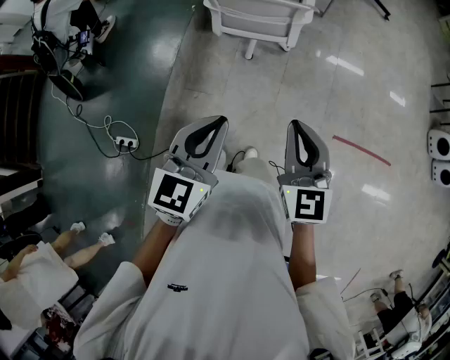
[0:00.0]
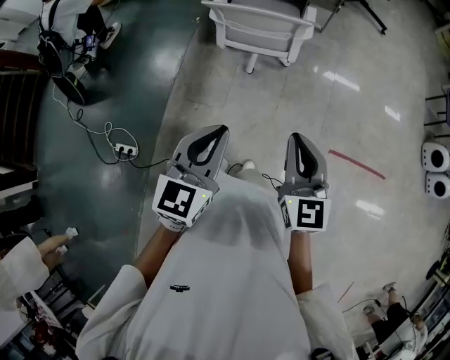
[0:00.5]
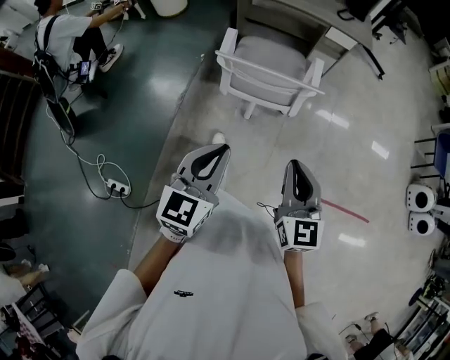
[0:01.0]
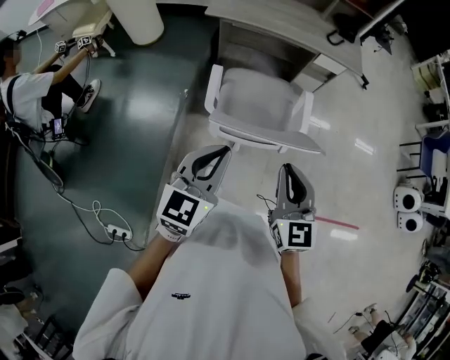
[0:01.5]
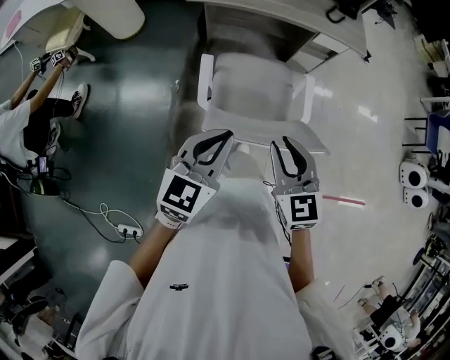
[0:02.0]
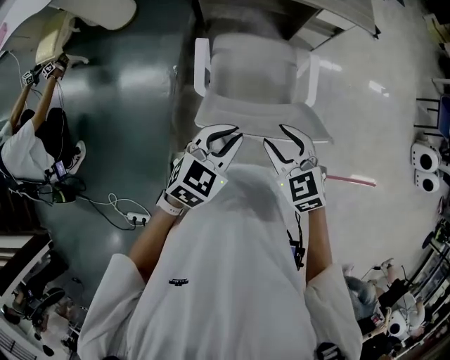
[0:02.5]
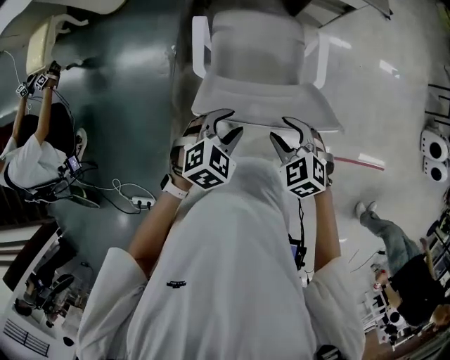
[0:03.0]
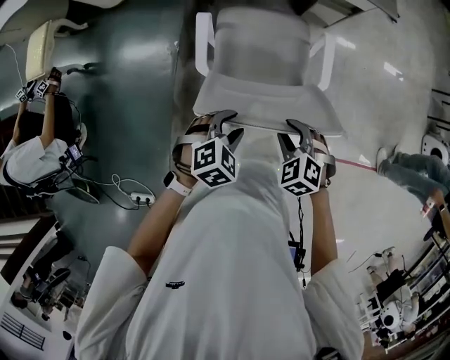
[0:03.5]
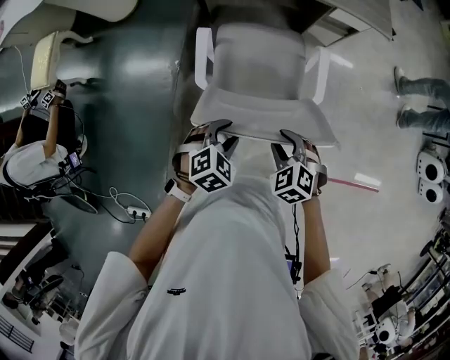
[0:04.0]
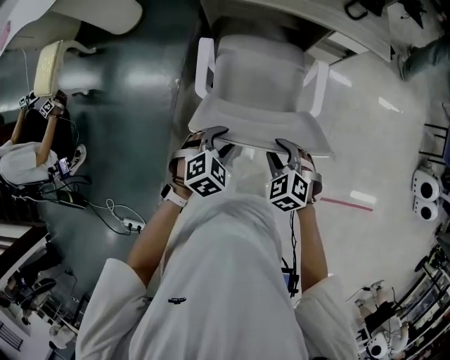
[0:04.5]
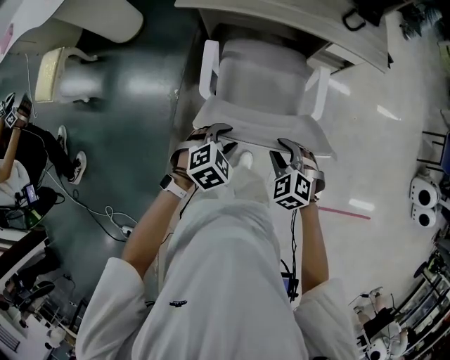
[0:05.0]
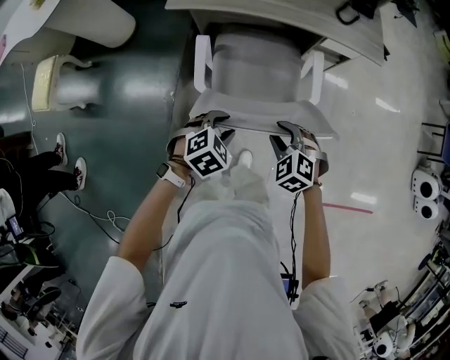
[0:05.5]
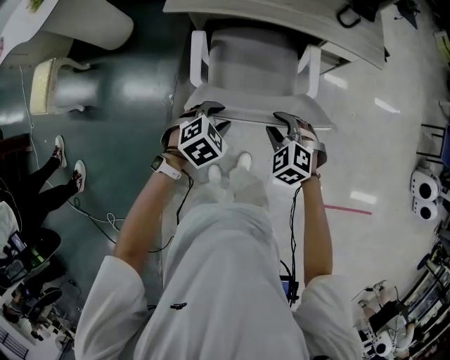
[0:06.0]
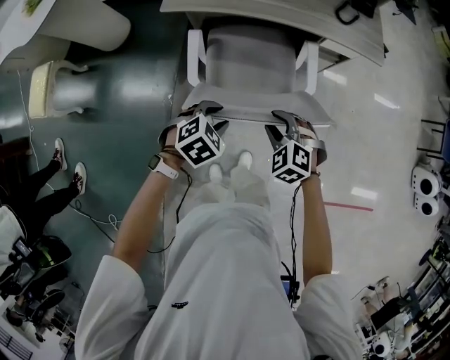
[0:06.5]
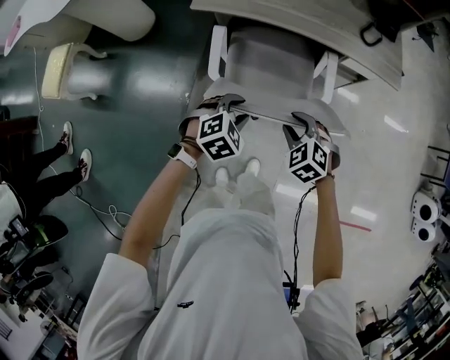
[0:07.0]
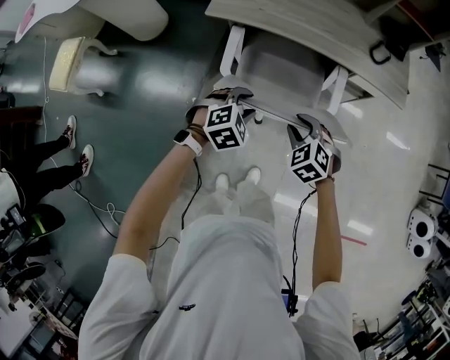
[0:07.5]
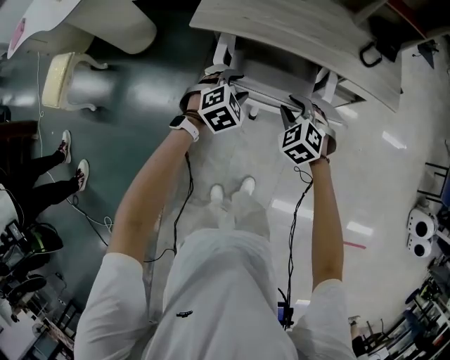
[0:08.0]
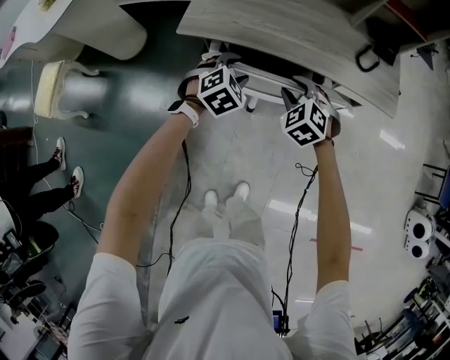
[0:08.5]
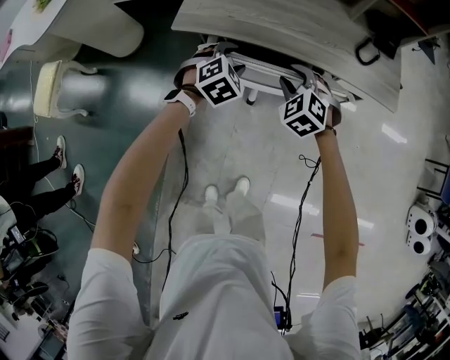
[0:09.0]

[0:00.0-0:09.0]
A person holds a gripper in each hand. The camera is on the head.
0:00.0 to 0:02.0: Both grippers are carried forward, approximately 50 cm.
0:02.0 to 0:04.5: The right gripper goes about 25 cm downward and forward, and tilts its fingers some 40 degrees downward, while the left gripper travels downward by approximately 20 cm, points its fingers approximately 40 degrees further downward, and opens its fingers.
0:04.5 to 0:07.0: The two grippers go approximately 15 cm forward.
0:07.0 to 0:09.0: Both grippers travel together forward, some 25 cm.

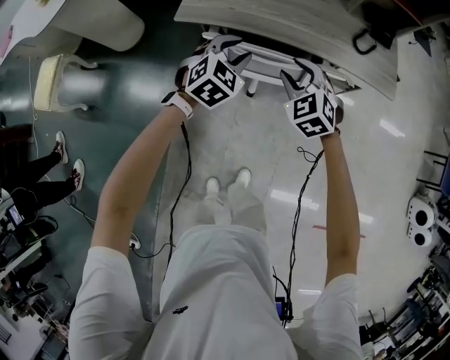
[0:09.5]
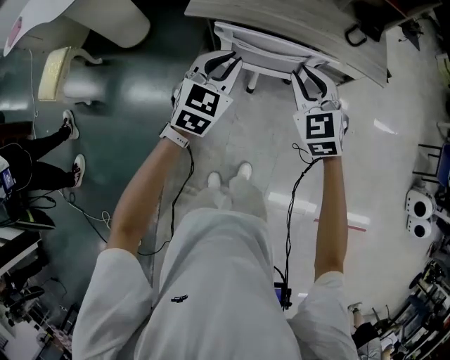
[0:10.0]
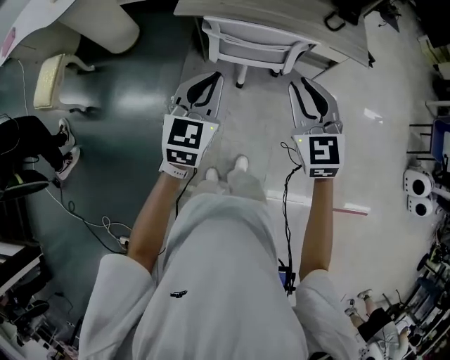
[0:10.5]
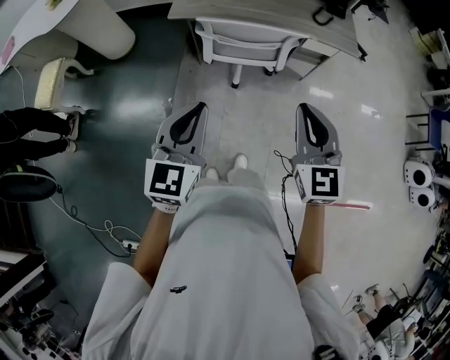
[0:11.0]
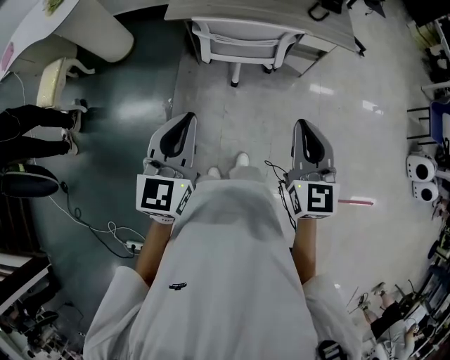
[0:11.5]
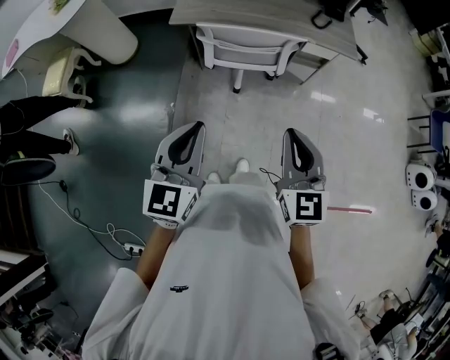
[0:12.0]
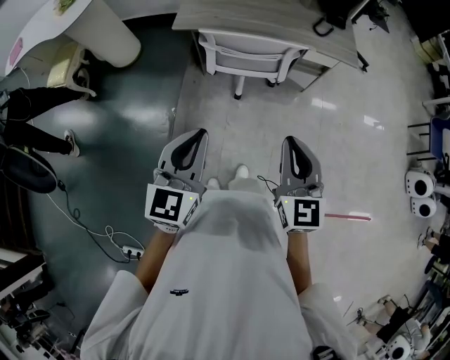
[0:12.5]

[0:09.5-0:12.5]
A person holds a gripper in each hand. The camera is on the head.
0:09.5 to 0:11.0: The two grippers go some 40 cm backward and upward. The right gripper turns by approximately 40 degrees, and closes its fingers, while the left gripper swivels roughly 40 degrees, and closes up.
0:11.0 to 0:12.5: The right gripper travels backward by some 5 cm.

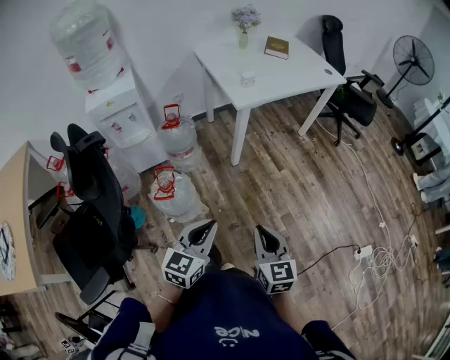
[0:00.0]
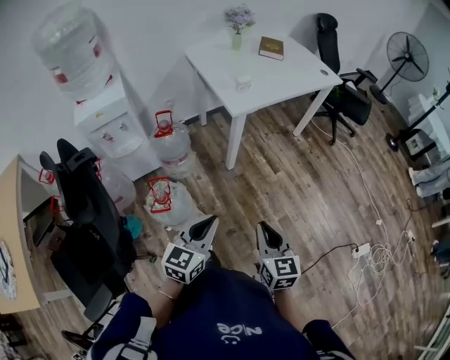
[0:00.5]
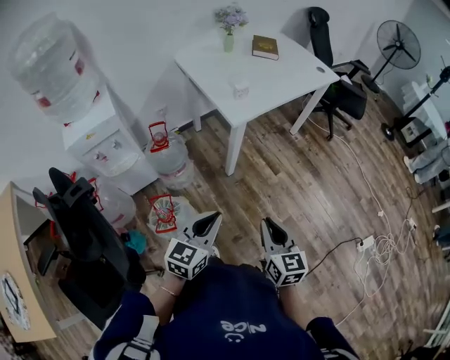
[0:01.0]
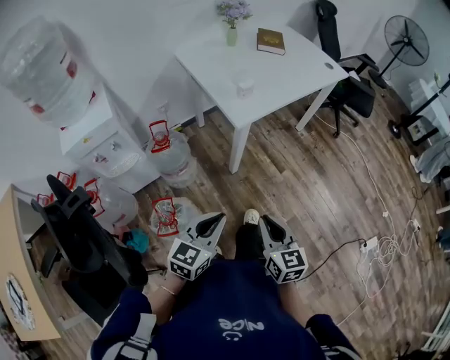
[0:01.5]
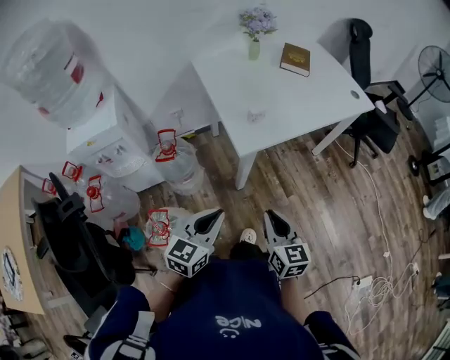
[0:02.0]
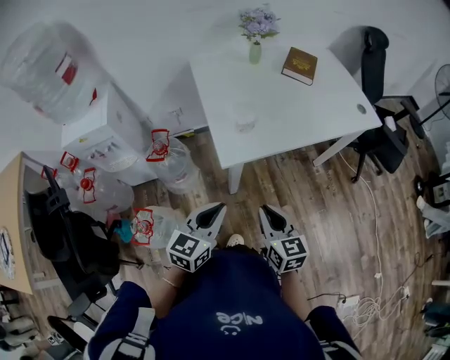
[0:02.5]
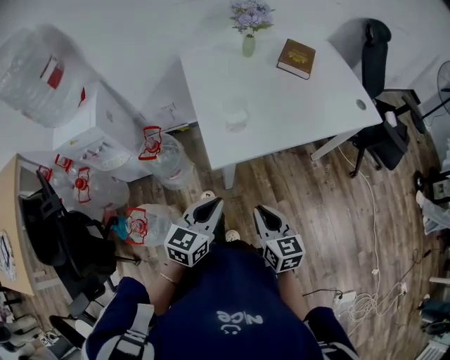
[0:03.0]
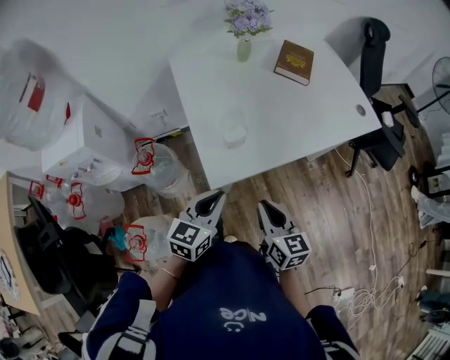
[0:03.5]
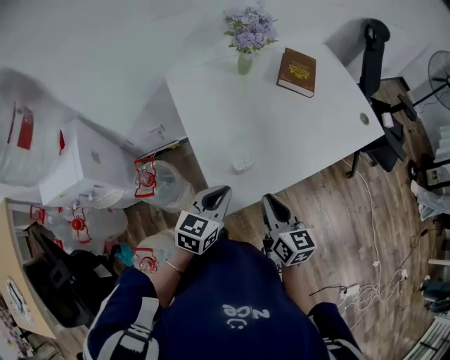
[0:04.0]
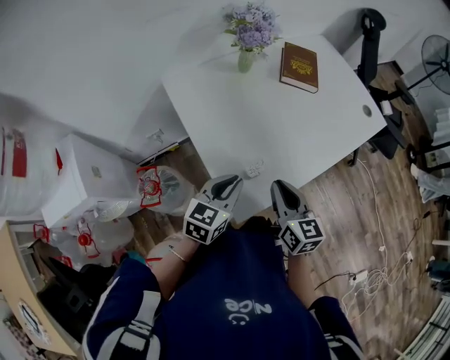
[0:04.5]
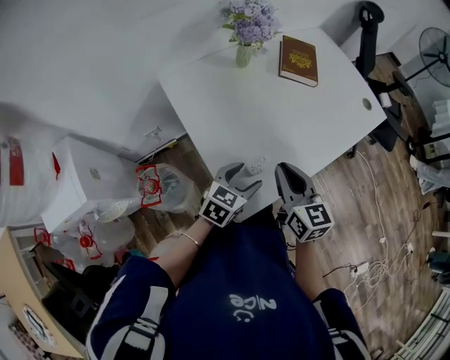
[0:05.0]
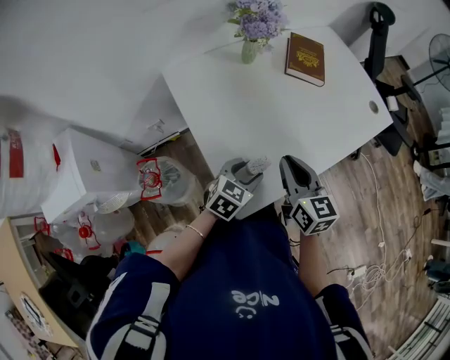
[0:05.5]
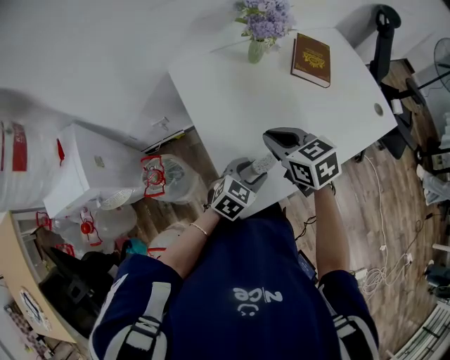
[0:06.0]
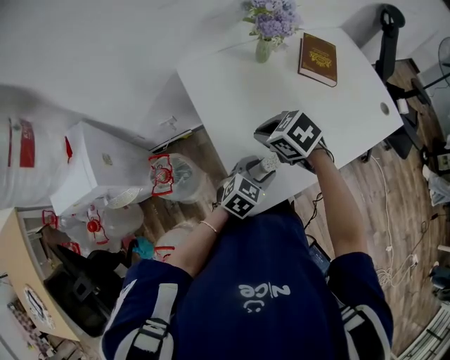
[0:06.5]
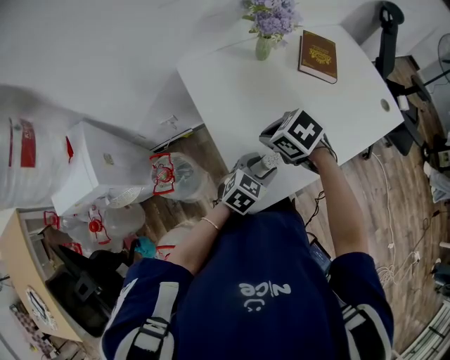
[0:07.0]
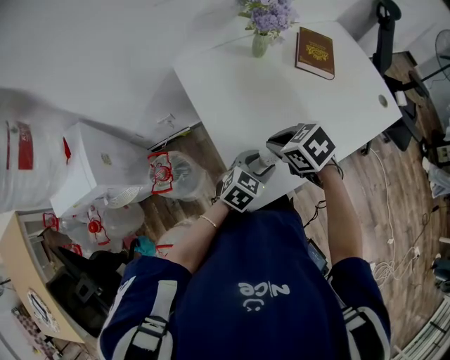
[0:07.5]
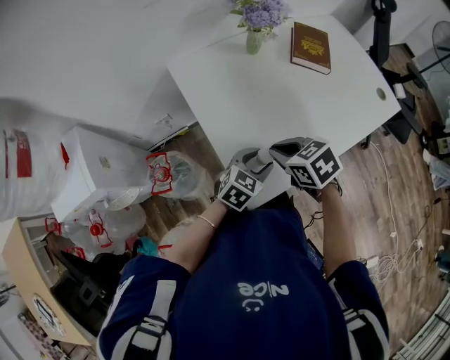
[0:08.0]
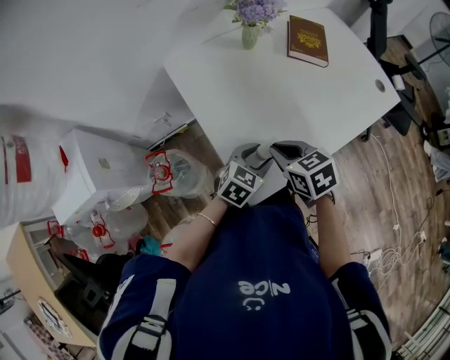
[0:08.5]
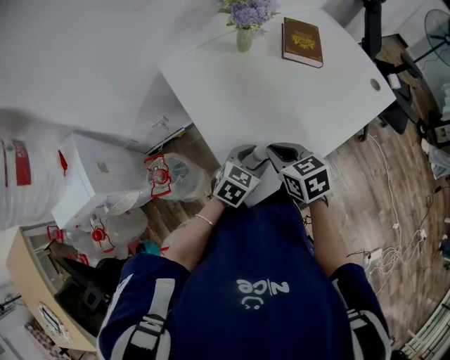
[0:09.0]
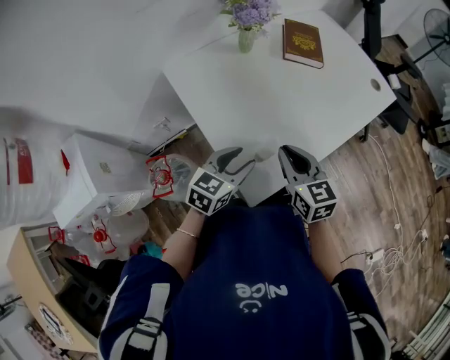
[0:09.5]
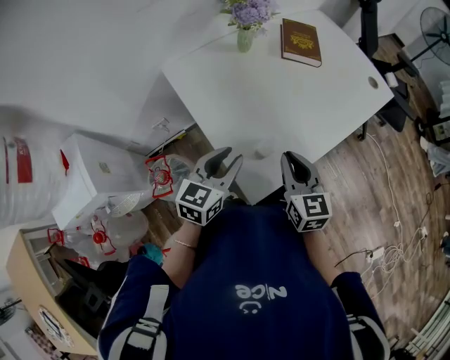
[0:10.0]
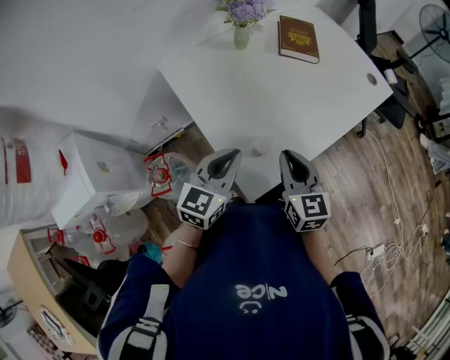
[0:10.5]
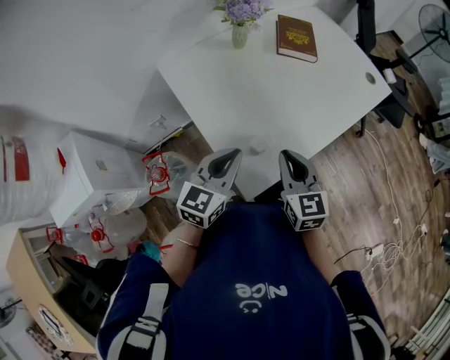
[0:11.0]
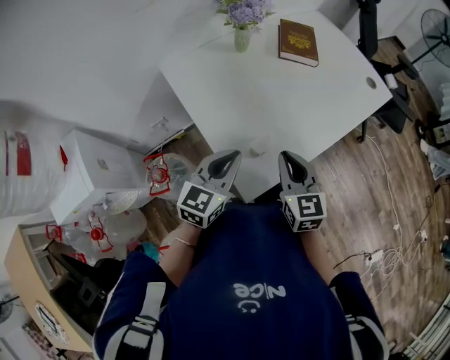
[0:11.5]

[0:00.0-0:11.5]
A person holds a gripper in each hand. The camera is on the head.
0:00.0 to 0:02.0: The grippers both shift forward by roughly 35 cm.
0:02.0 to 0:04.0: Both grippers travel together forward, approximately 35 cm.
0:04.0 to 0:06.0: The left gripper travels forward and downward by approximately 10 cm, swivels about 20 degrees, and opens its fingers, while the right gripper travels forward and to the left by roughly 20 cm, and turns by roughly 30 degrees.
0:06.0 to 0:07.5: The right gripper moves roughly 5 cm, and rotates approximately 20 degrees.
0:07.5 to 0:09.5: The right gripper goes approximately 5 cm to the right, and points its fingers about 30 degrees further upward; the left gripper moves to the left, about 5 cm.
0:09.5 to 0:11.5: The left gripper shifts some 5 cm upward, and closes its fingers.

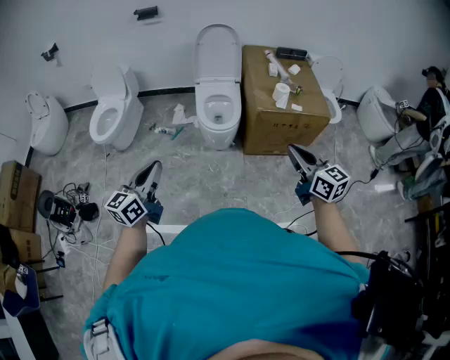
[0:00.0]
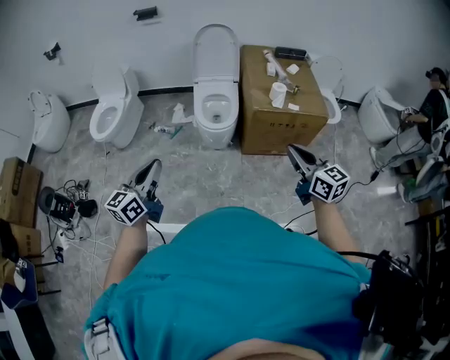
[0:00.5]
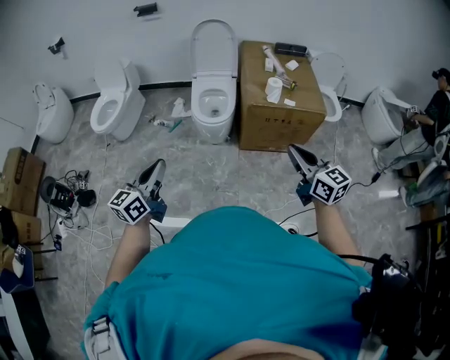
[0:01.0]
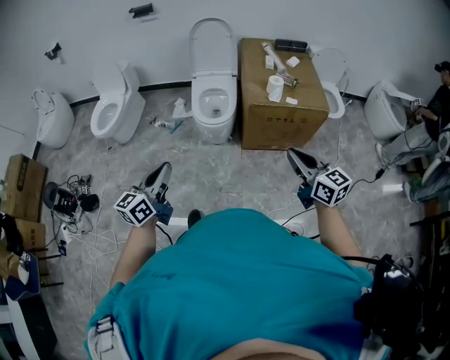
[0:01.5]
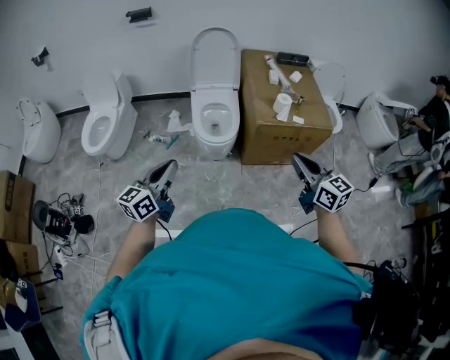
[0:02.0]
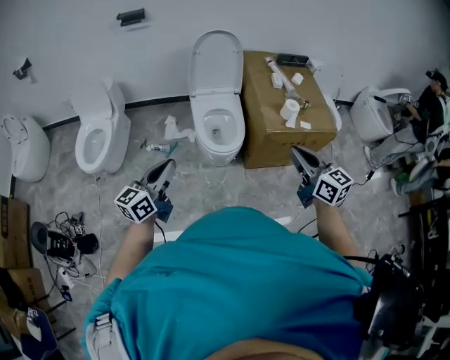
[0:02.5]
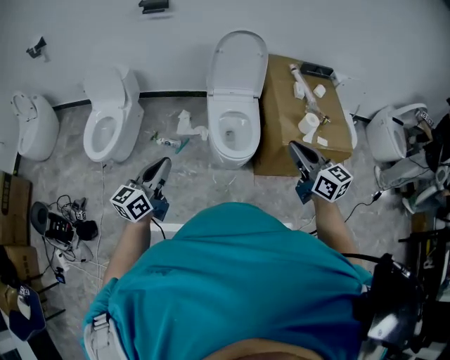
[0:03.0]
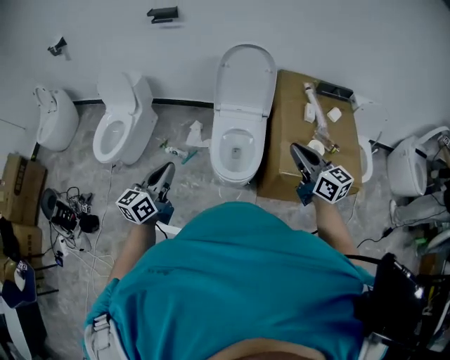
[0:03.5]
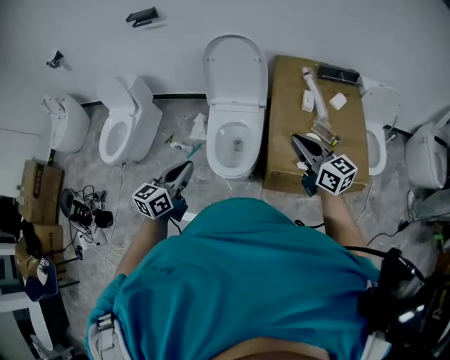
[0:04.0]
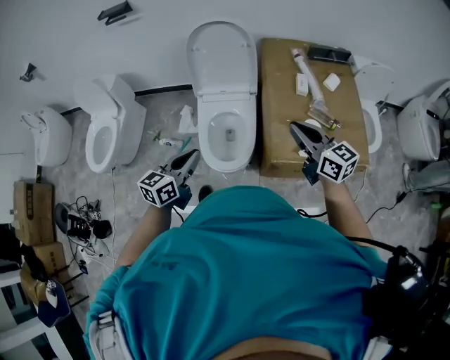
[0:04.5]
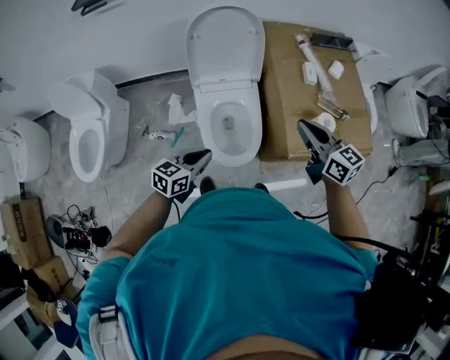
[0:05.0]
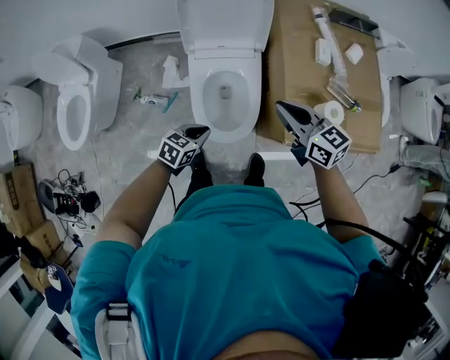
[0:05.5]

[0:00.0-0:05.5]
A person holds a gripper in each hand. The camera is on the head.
0:00.0 to 0:02.0: The right gripper moves forward, approximately 10 cm; the left gripper travels forward and to the right by approximately 15 cm.
0:02.0 to 0:03.5: The grippers both shift forward by some 30 cm.
0:03.5 to 0:05.5: The left gripper travels downward, forward and to the right by approximately 40 cm, and points its fingers approximately 40 degrees further downward. Meanwhile the right gripper shifts about 25 cm forward and downward.
